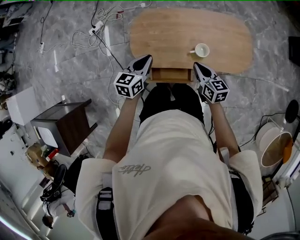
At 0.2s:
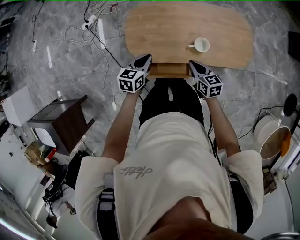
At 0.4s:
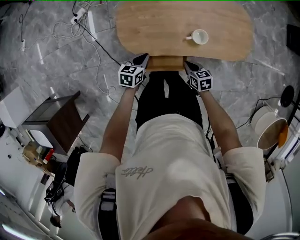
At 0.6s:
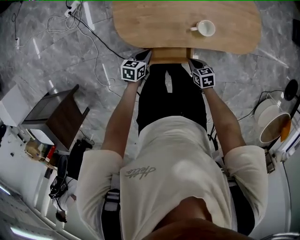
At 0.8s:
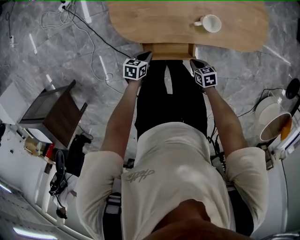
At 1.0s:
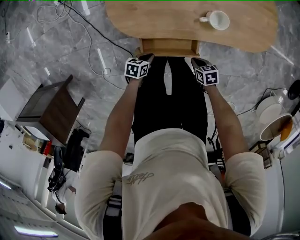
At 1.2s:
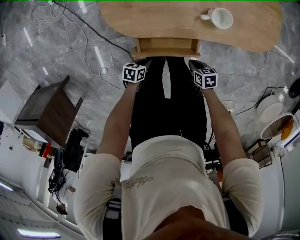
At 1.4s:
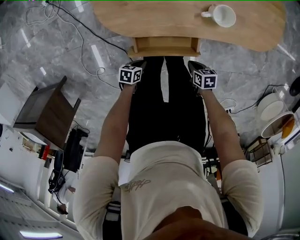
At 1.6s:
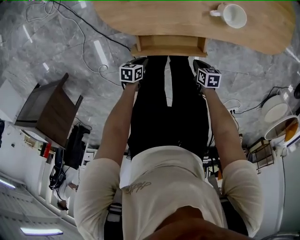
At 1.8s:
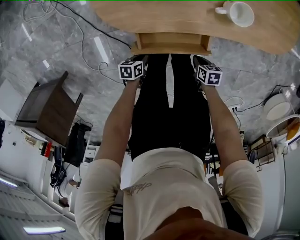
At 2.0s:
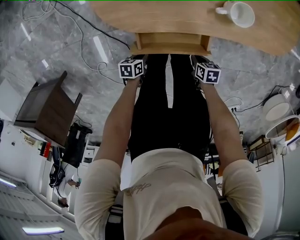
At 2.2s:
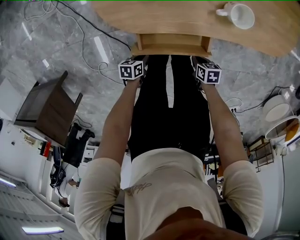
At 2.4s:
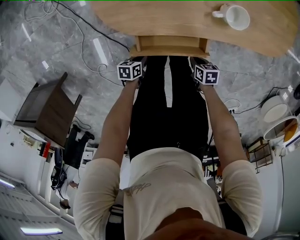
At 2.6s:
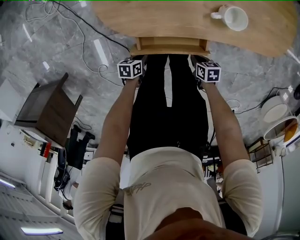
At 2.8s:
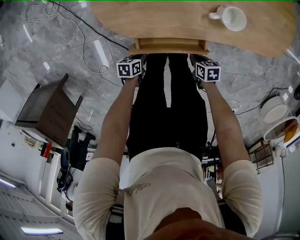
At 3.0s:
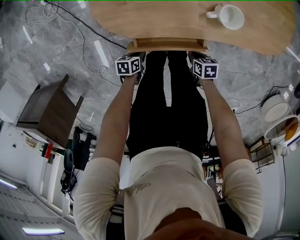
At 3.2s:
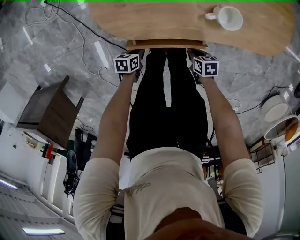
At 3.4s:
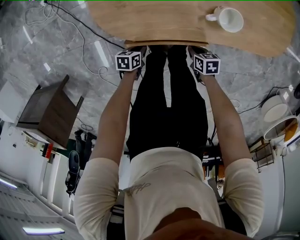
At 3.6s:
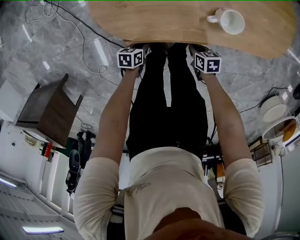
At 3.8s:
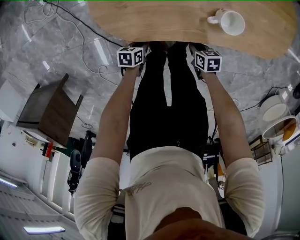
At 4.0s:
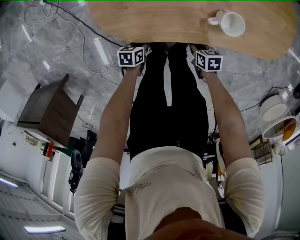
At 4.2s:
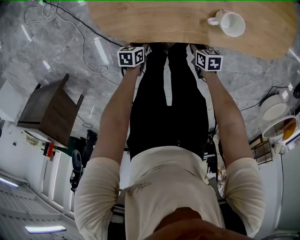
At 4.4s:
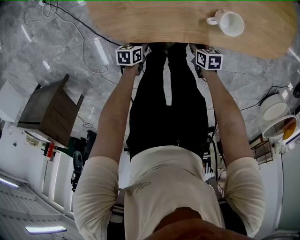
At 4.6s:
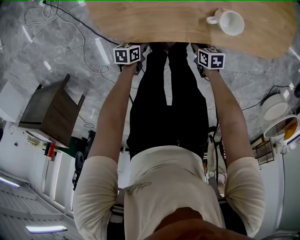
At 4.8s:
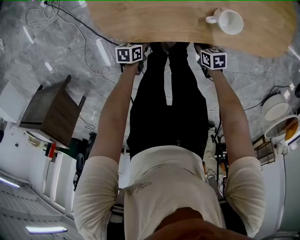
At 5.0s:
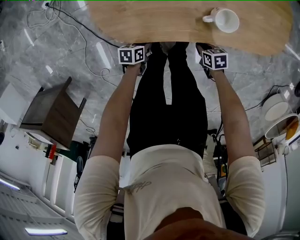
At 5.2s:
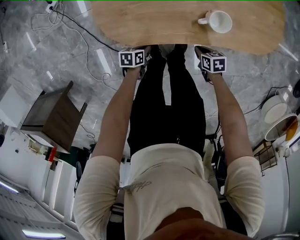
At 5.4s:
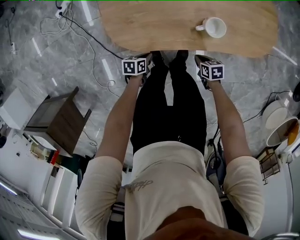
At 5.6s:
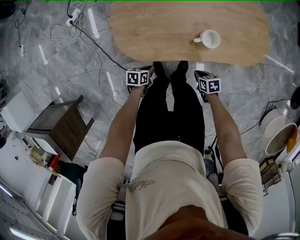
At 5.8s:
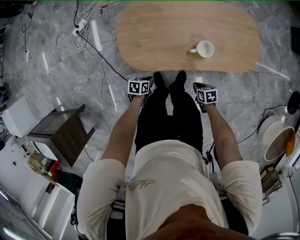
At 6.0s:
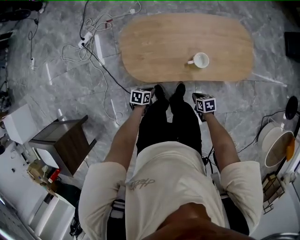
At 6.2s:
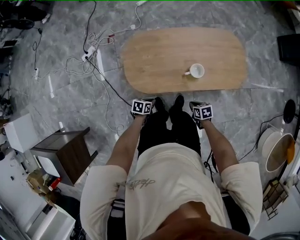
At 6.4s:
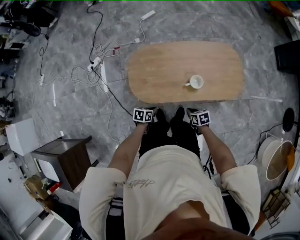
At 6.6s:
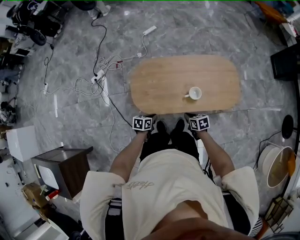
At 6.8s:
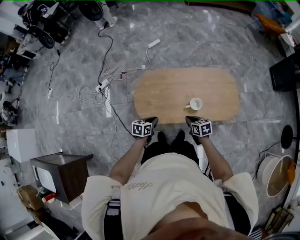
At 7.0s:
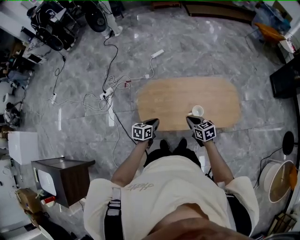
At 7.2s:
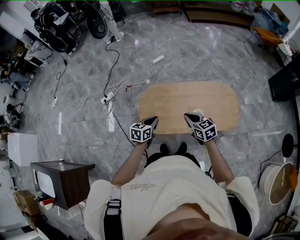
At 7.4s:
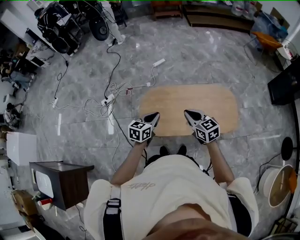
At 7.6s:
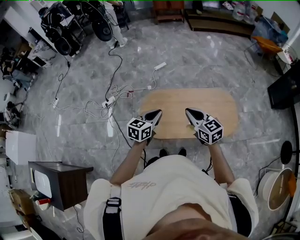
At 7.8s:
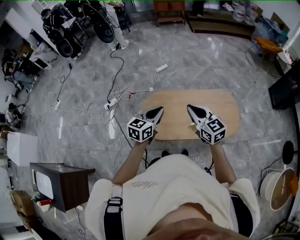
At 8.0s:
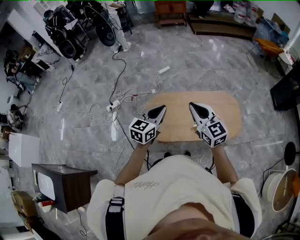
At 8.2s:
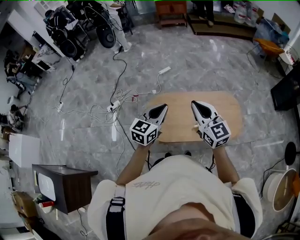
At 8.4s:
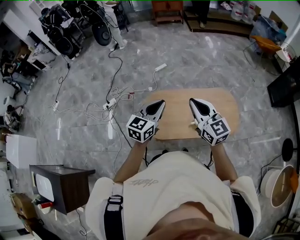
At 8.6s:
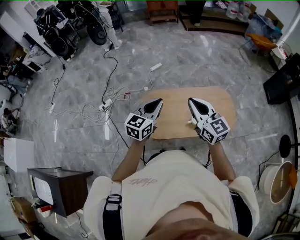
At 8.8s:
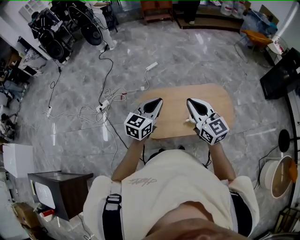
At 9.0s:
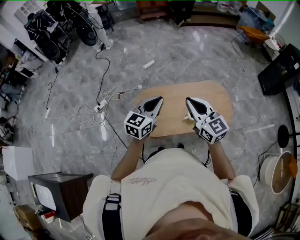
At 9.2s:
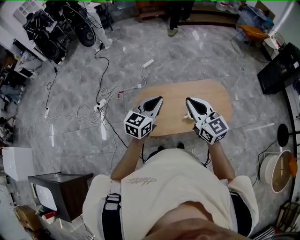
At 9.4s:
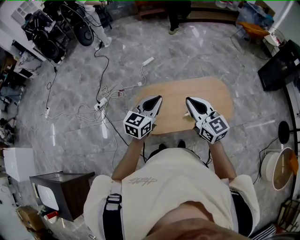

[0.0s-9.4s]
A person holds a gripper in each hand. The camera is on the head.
0.0s to 1.6s: Both grippers move downward, some 60 cm. The right gripper points its fingers approximately 30 degrees further downward. The left gripper turns by some 50 degrees.
1.6s to 3.2s: The left gripper ends up roughly 10 cm from where it was; the right gripper ends up about 10 cm from where it was.
3.2s to 4.8s: The right gripper ends up approximately 5 cm from where it was; the left gripper moves roughly 5 cm.
4.8s to 6.2s: Both grippers move upward, roughly 30 cm.
6.2s to 7.8s: Both grippers move upward, about 50 cm. The left gripper tilts its fingers approximately 40 degrees upward, while the right gripper points its fingers about 40 degrees further upward.
7.8s to 9.4s: The grippers make only small movements.

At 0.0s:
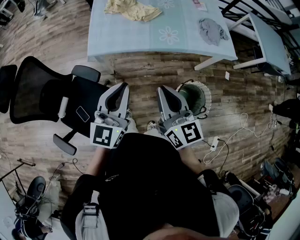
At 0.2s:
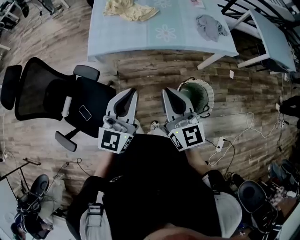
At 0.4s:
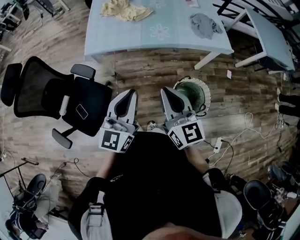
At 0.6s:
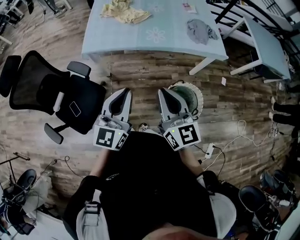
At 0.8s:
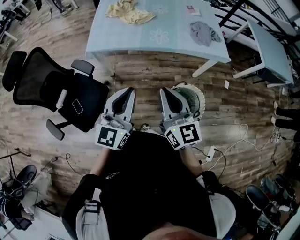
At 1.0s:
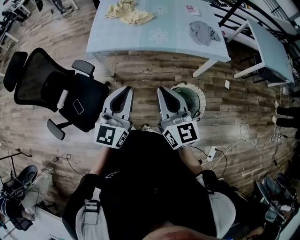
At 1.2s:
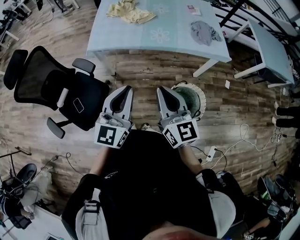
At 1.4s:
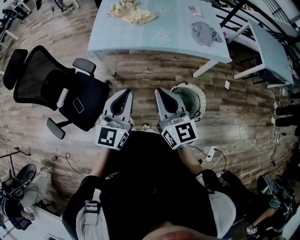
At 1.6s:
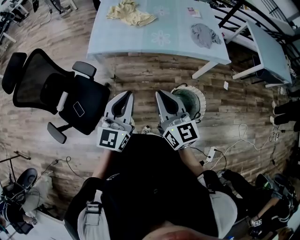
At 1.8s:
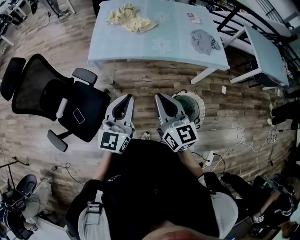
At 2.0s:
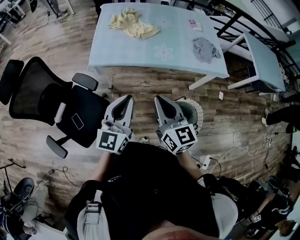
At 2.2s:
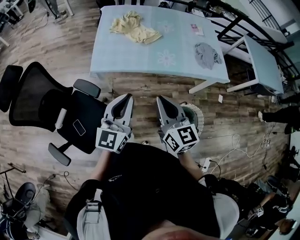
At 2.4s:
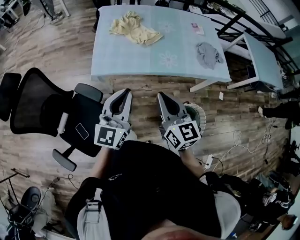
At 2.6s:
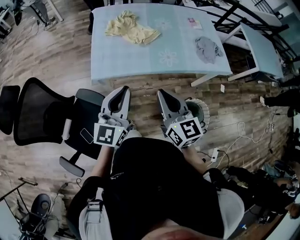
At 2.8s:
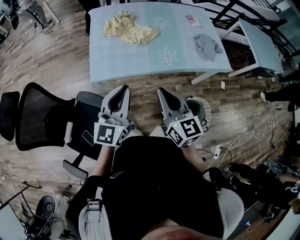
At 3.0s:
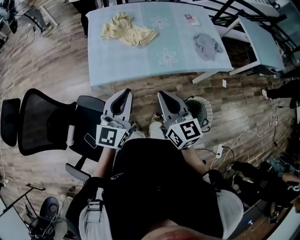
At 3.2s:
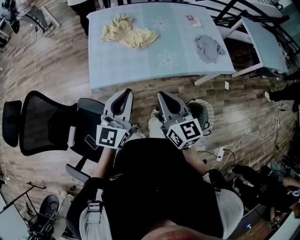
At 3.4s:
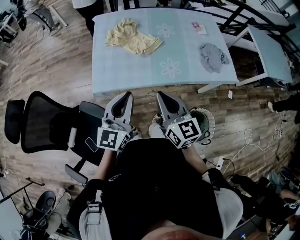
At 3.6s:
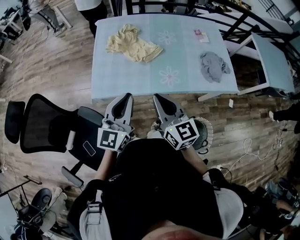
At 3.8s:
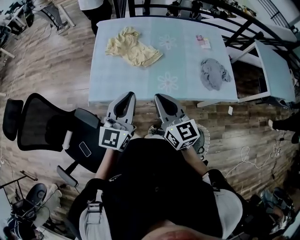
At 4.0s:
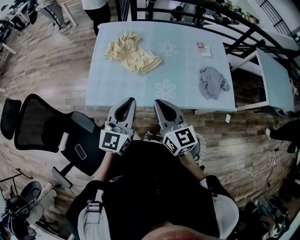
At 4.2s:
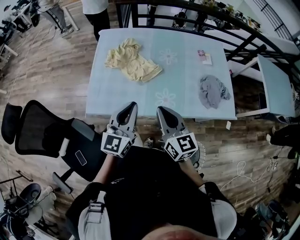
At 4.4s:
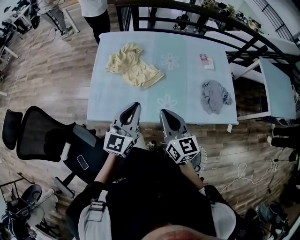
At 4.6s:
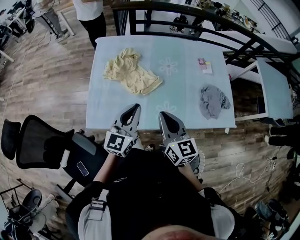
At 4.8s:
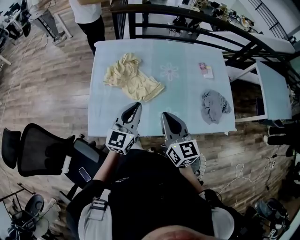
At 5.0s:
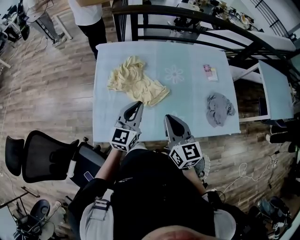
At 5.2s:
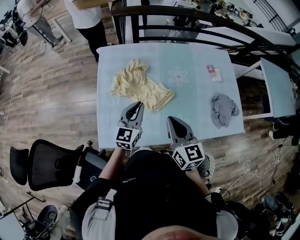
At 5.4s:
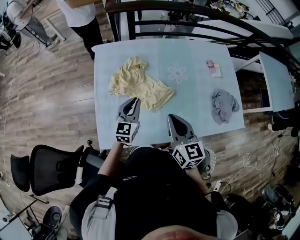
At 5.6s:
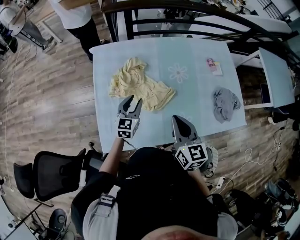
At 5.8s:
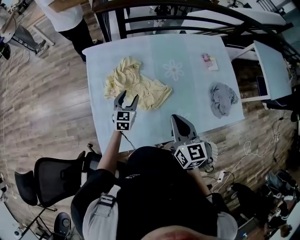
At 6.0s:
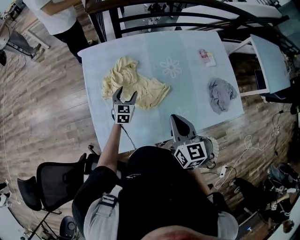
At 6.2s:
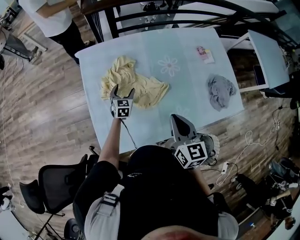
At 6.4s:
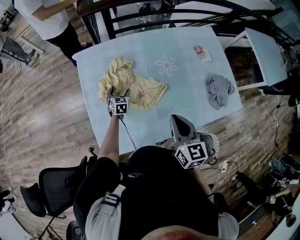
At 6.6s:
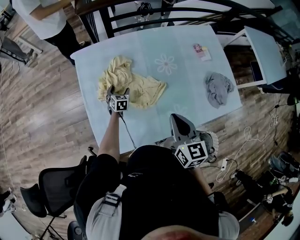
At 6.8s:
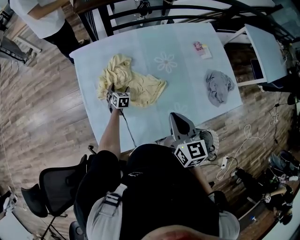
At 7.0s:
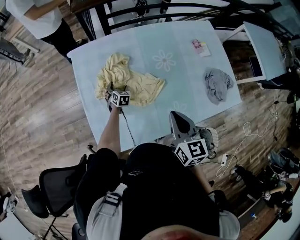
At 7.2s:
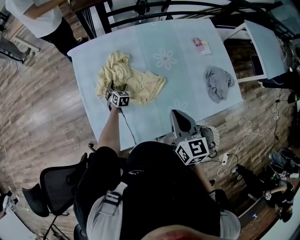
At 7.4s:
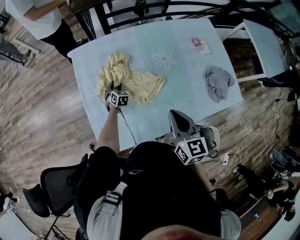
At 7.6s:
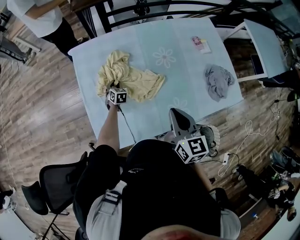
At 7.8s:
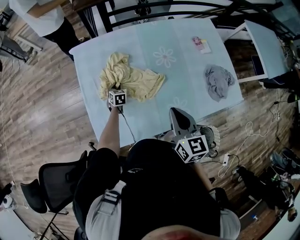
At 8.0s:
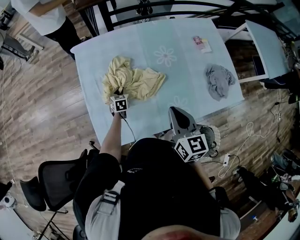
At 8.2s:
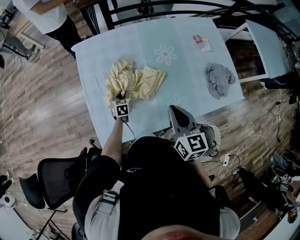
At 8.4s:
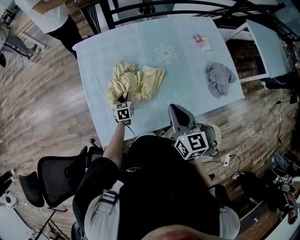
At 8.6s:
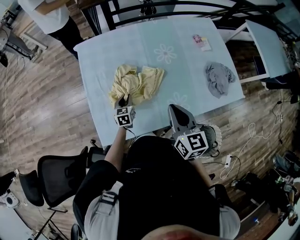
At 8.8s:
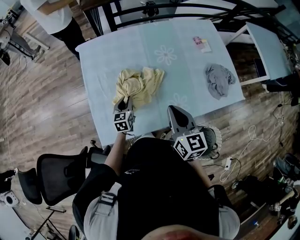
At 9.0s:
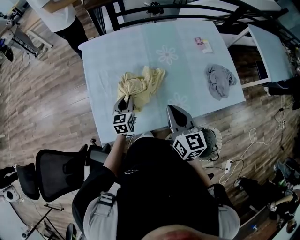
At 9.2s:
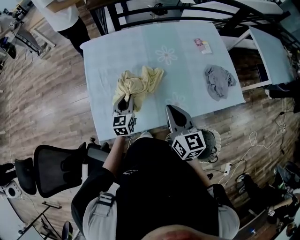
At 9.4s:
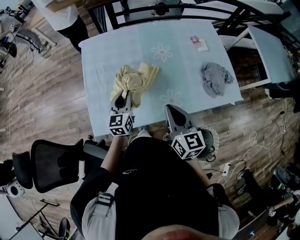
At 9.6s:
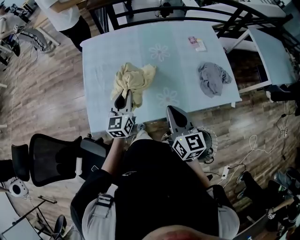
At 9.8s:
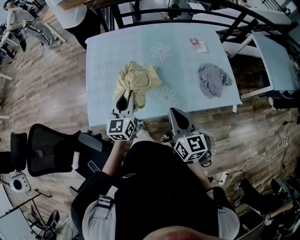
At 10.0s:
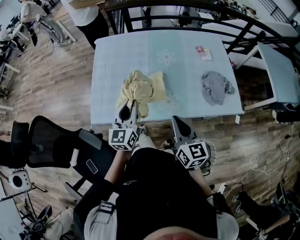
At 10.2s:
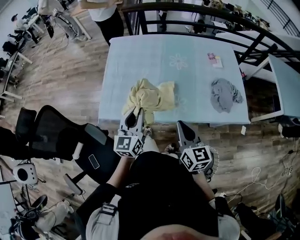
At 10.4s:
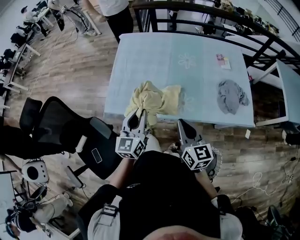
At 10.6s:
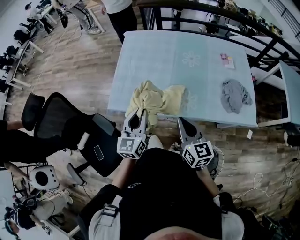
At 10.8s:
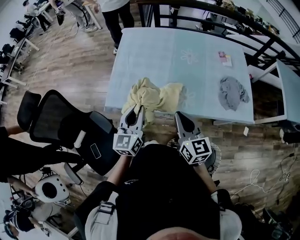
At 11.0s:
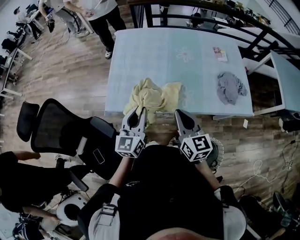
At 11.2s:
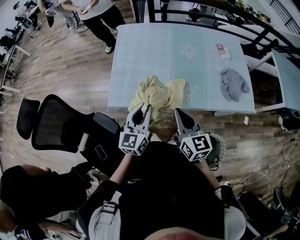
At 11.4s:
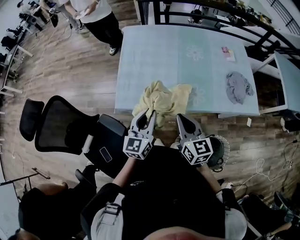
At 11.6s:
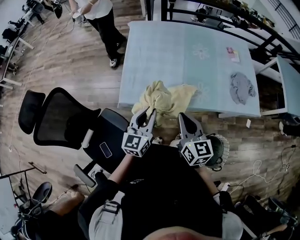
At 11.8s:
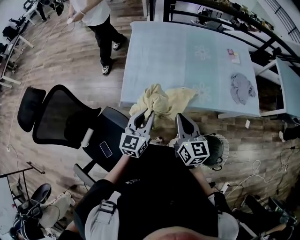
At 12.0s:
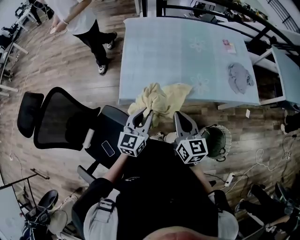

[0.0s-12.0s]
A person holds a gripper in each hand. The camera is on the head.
0.0s to 1.6s: The grippers both shift backward and to the right by roughly 15 cm.
1.6s to 3.0s: The grippers both shift forward and to the left by some 25 cm.
3.0s to 4.4s: Both grippers travel together forward and to the right, some 25 cm.
4.4s to 6.0s: The left gripper goes about 40 cm forward and downward, swivels roughly 30 degrees, and opens; the right gripper goes roughly 20 cm forward and to the left, and turns by about 20 degrees.
6.0s to 7.6s: The left gripper heads downward, covering approximately 15 cm, changes its angle by roughly 20 degrees, and closes up.
7.6s to 9.0s: The left gripper goes approximately 25 cm backward and upward, and swivels approximately 30 degrees; the right gripper travels backward by roughly 5 cm.
9.0s to 10.4s: The left gripper travels backward and upward by about 30 cm, and swivels about 20 degrees; the right gripper moves backward and to the right, some 20 cm.
10.4s to 12.0s: The right gripper goes approximately 20 cm to the left; the left gripper shifts roughly 15 cm to the left and backward.

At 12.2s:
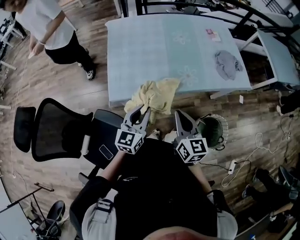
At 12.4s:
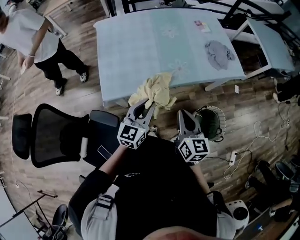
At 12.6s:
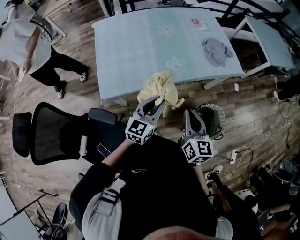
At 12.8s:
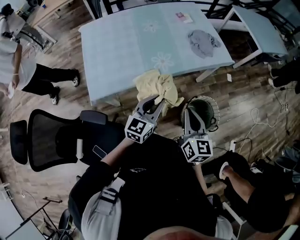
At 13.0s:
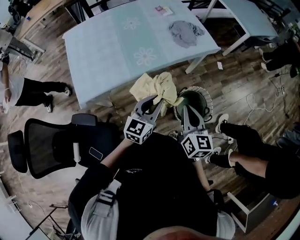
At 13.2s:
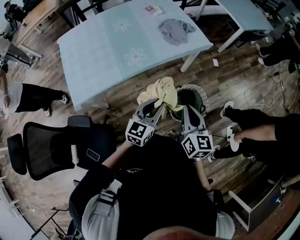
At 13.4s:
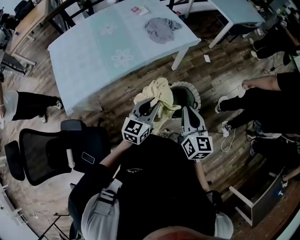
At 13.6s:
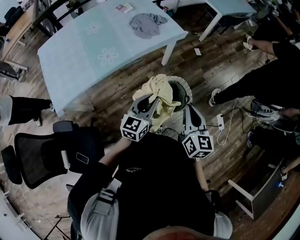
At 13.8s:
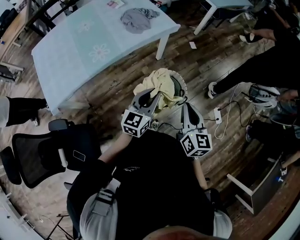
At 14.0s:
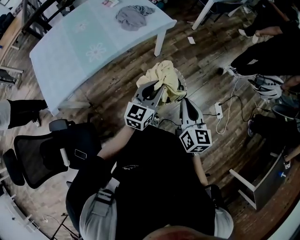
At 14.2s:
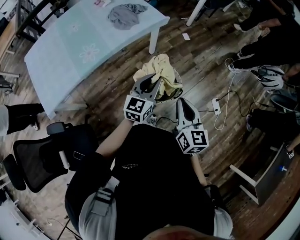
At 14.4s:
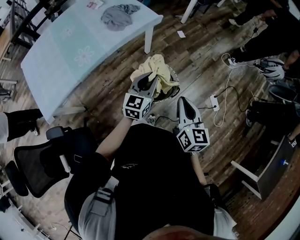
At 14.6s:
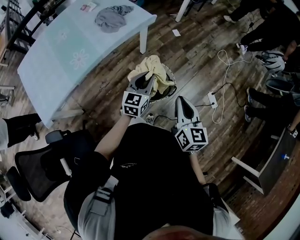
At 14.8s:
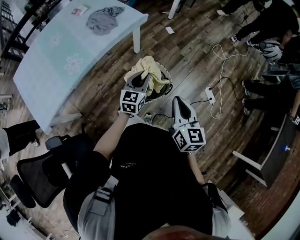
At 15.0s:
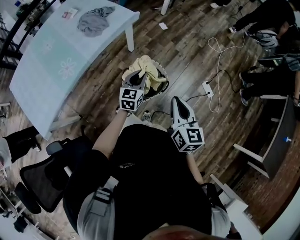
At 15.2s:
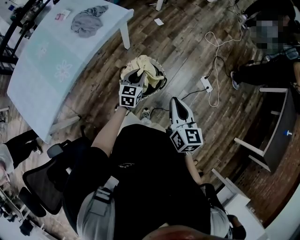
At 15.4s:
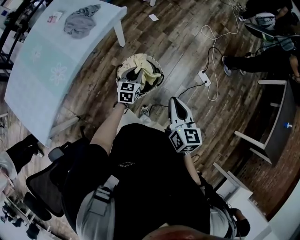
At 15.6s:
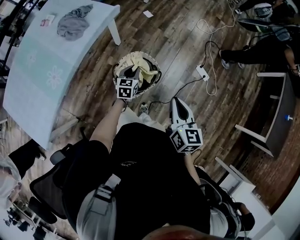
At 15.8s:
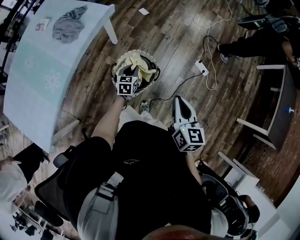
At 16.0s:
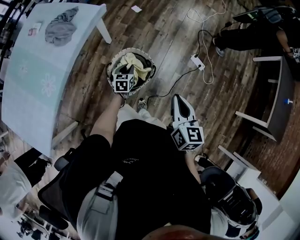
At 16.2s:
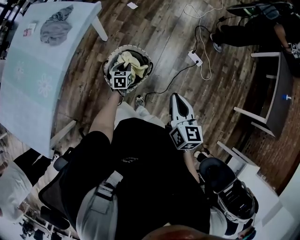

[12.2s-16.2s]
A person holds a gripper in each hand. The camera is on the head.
12.2s to 13.6s: The pair of grippers is taken approximately 50 cm. The left gripper swivels approximately 30 degrees. Meanwhile the right gripper changes its angle by about 30 degrees.
13.6s to 14.8s: The left gripper goes roughly 20 cm to the right, forward and downward, while the right gripper is displaced to the right by roughly 10 cm.
14.8s to 16.2s: The right gripper is displaced to the right by some 10 cm, and rotates about 20 degrees; the left gripper moves downward, approximately 20 cm, and turns by roughly 30 degrees.
